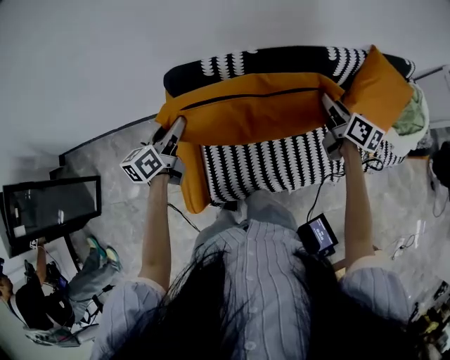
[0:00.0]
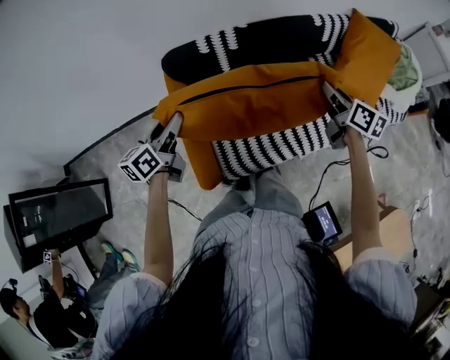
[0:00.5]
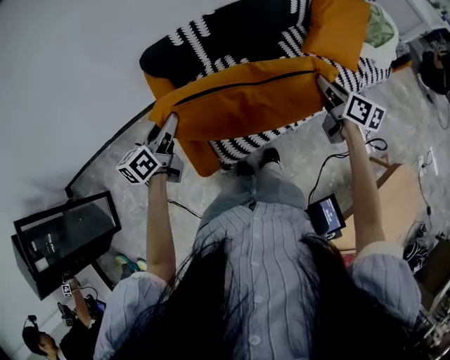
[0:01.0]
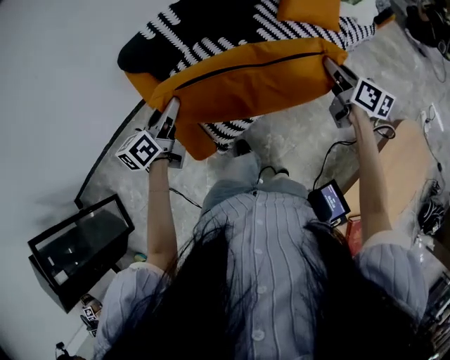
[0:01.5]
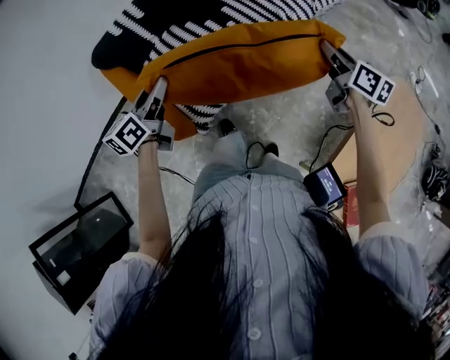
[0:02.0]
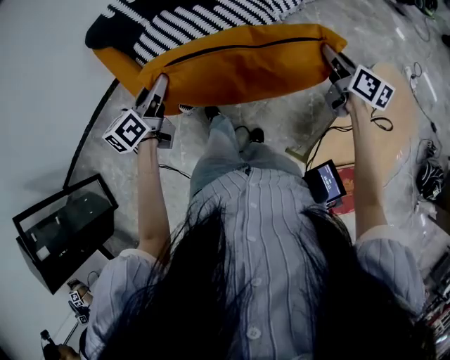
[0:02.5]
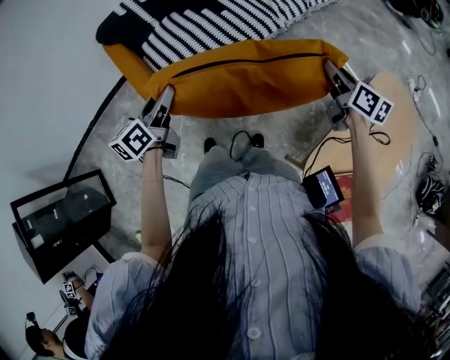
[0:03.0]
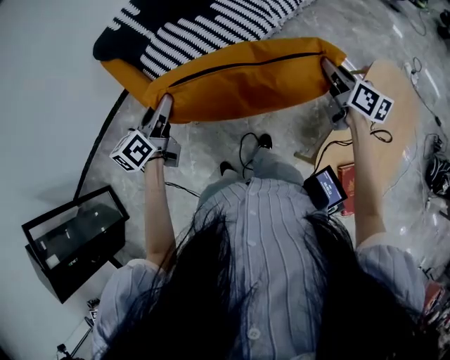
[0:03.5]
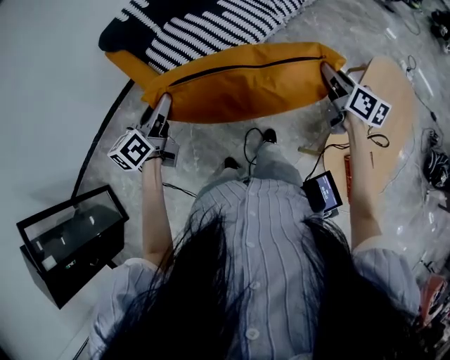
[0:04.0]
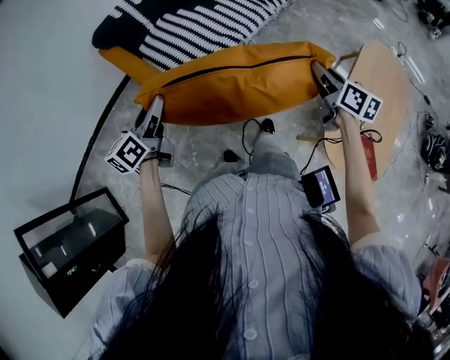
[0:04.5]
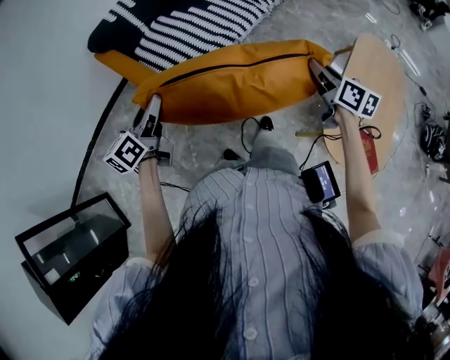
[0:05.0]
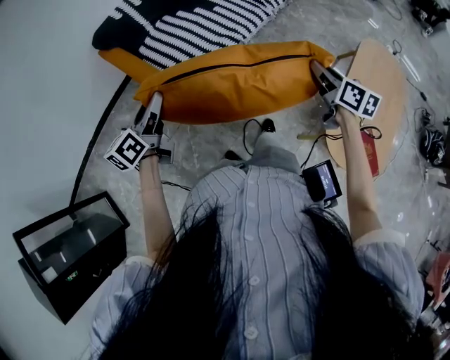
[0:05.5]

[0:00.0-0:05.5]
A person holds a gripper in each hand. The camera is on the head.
0:00.0 to 0:02.0: The right gripper moves some 50 cm, and turns by roughly 30 degrees, while the left gripper moves roughly 30 cm, and rotates some 30 degrees.
0:02.0 to 0:03.5: Both grippers move backward, roughly 15 cm.
0:03.5 to 0:05.5: The left gripper shifts approximately 15 cm to the left and backward, while the right gripper travels backward and to the left by approximately 20 cm.

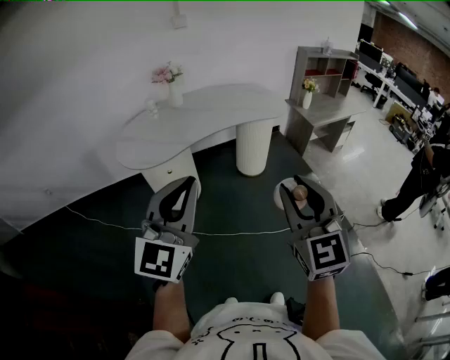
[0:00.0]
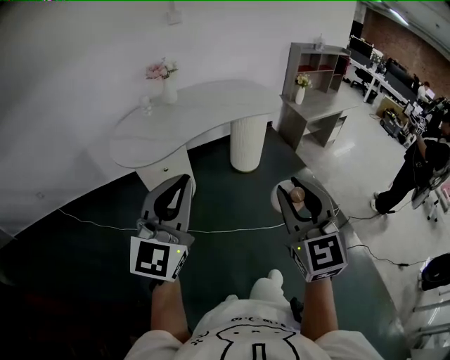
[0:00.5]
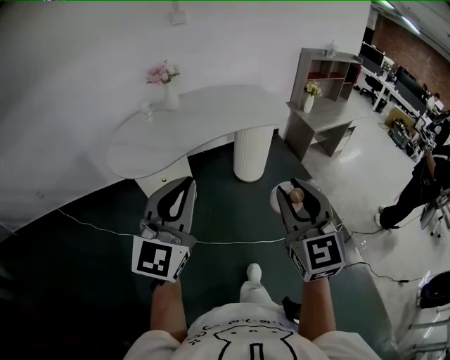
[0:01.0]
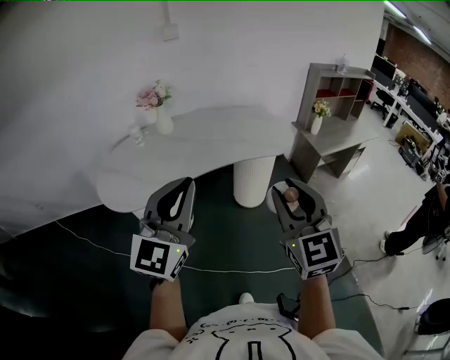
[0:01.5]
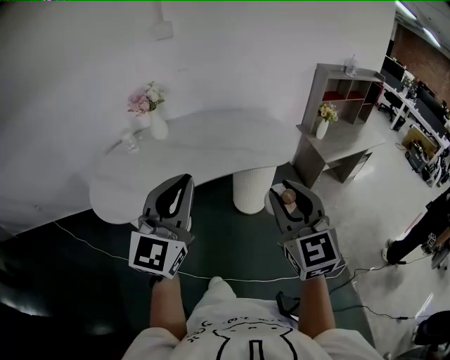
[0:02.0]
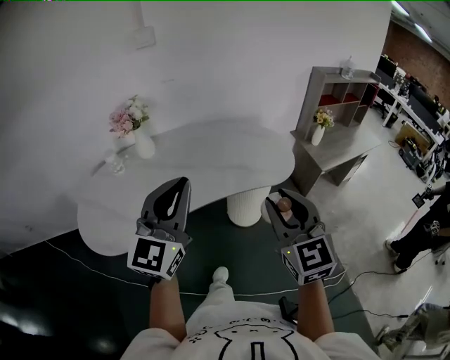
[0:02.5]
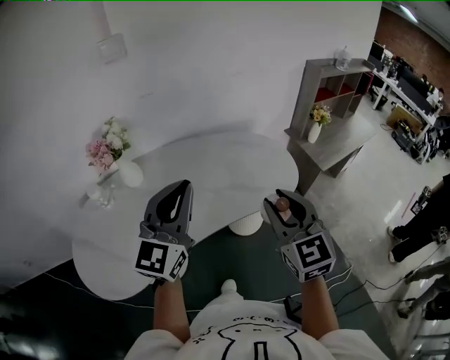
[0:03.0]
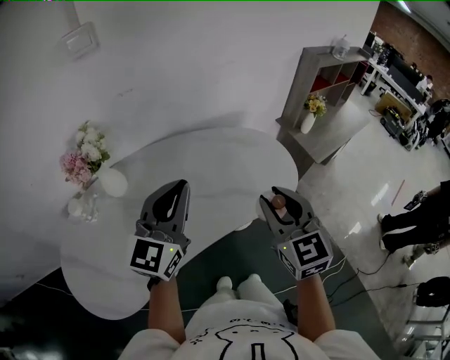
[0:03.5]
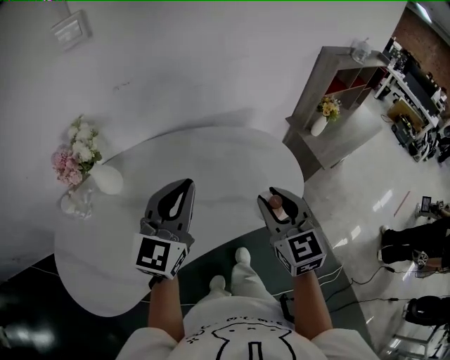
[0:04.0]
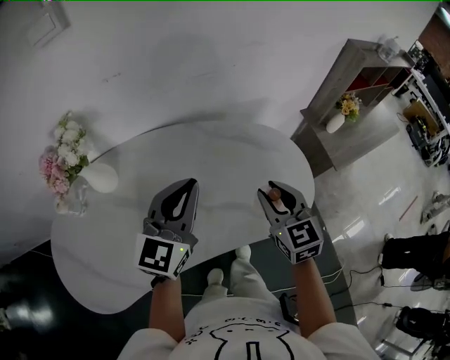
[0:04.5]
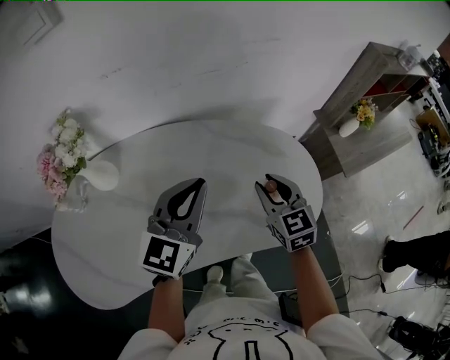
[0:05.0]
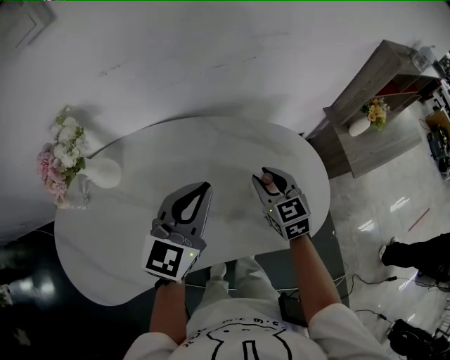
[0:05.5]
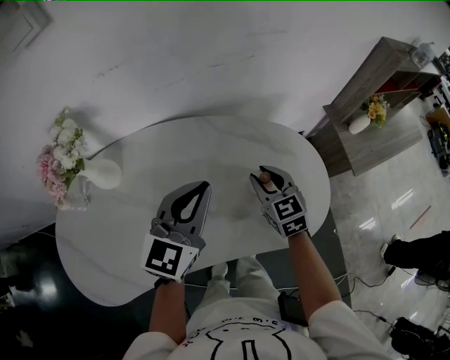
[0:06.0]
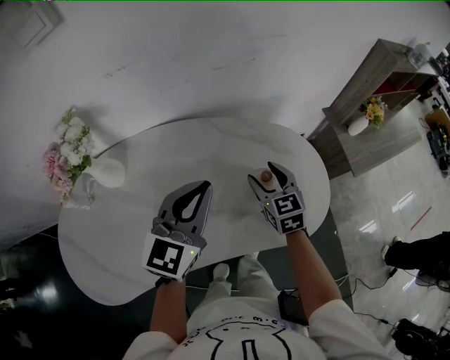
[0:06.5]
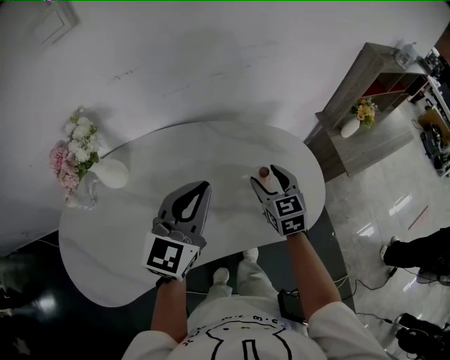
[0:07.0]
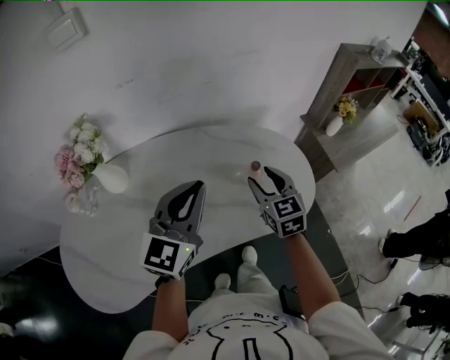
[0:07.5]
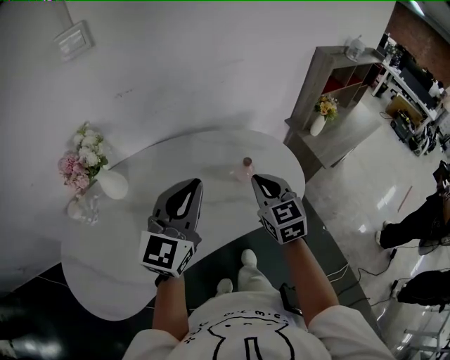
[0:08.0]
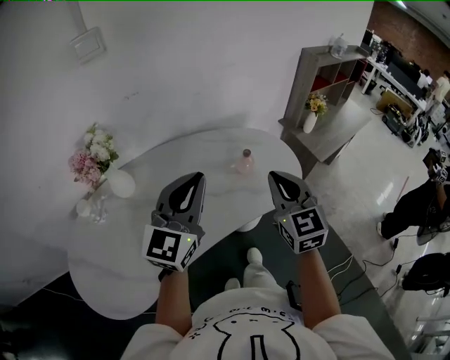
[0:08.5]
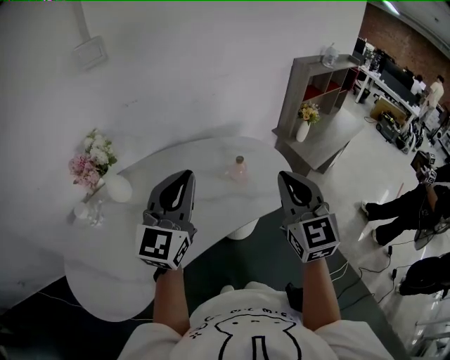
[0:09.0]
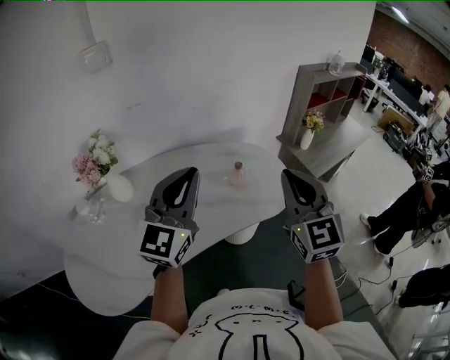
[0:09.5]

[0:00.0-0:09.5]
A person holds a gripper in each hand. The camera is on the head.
0:00.0 to 0:02.0: The two grippers travel together, forward, about 40 cm.
0:02.0 to 0:04.0: Both grippers are carried forward, some 50 cm.
0:04.0 to 0:05.5: The left gripper goes about 15 cm forward and downward. Meanwhile the right gripper goes roughly 25 cm forward and downward.
0:05.5 to 0:07.5: Both grippers move backward and upward, approximately 10 cm.
0:07.5 to 0:09.5: The left gripper shifts roughly 15 cm backward and upward; the right gripper goes approximately 30 cm upward and backward, turns by approximately 30 degrees, and closes up.

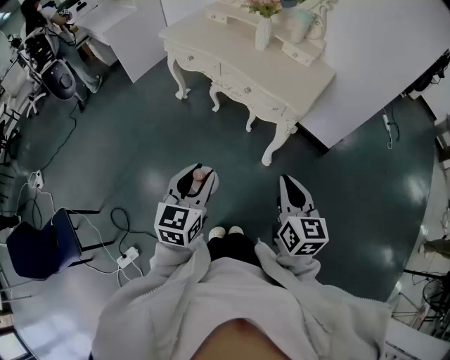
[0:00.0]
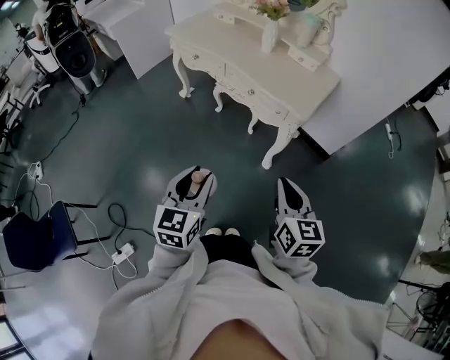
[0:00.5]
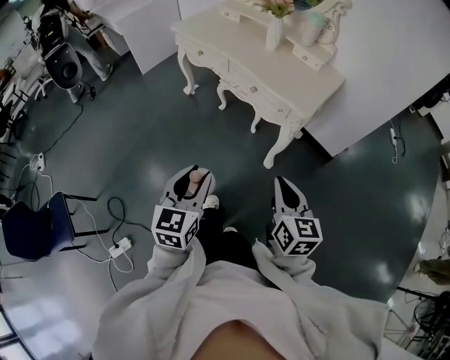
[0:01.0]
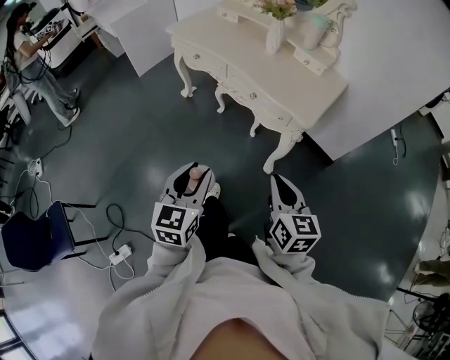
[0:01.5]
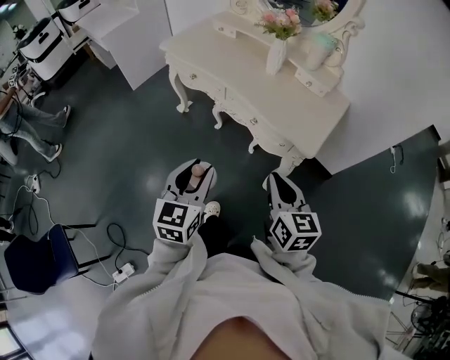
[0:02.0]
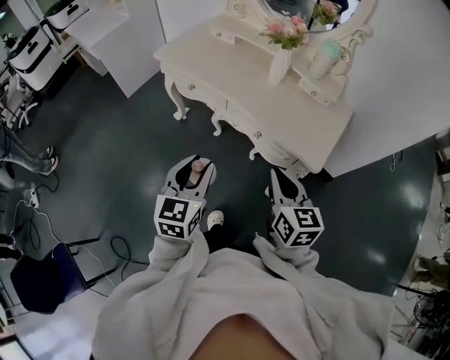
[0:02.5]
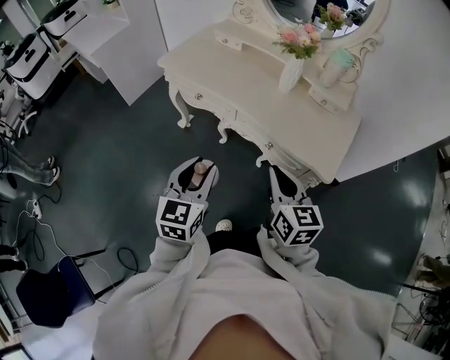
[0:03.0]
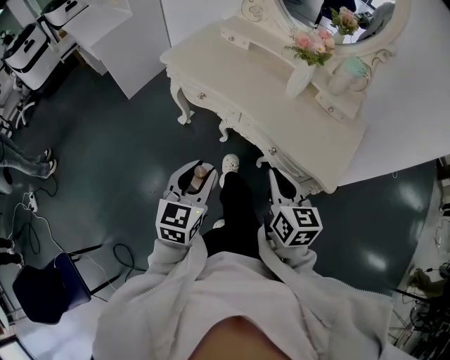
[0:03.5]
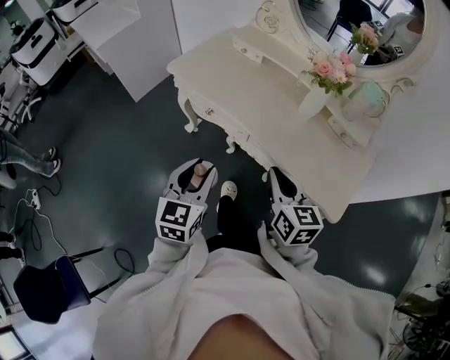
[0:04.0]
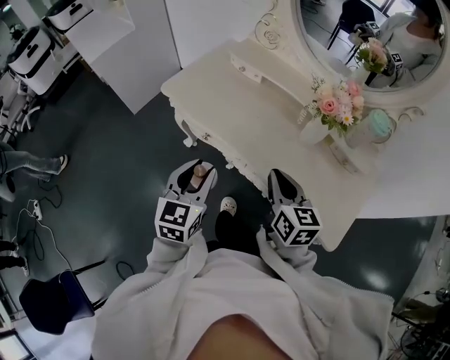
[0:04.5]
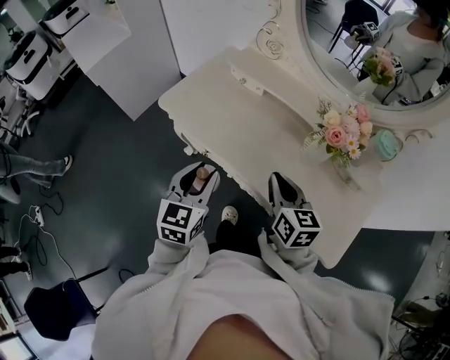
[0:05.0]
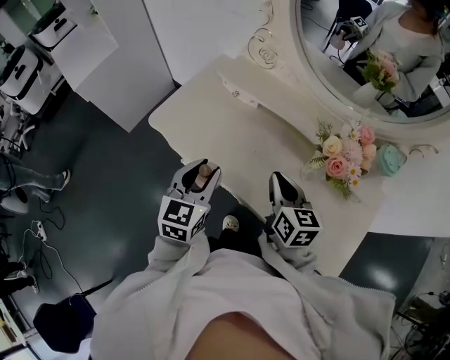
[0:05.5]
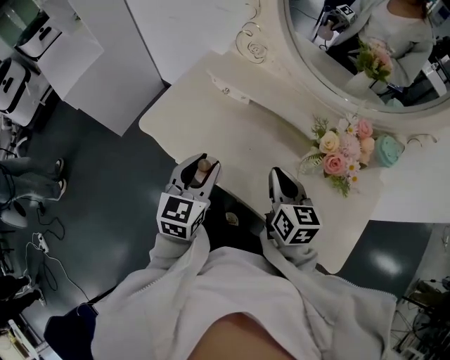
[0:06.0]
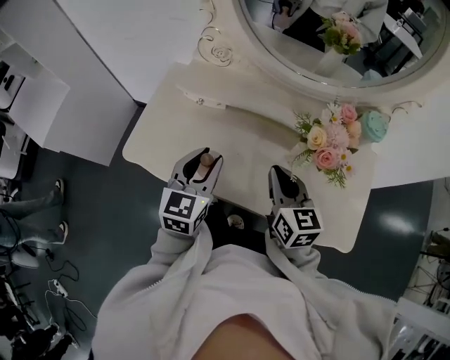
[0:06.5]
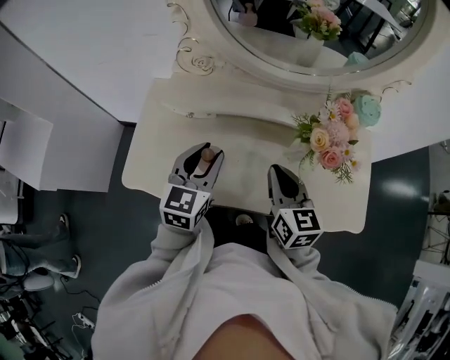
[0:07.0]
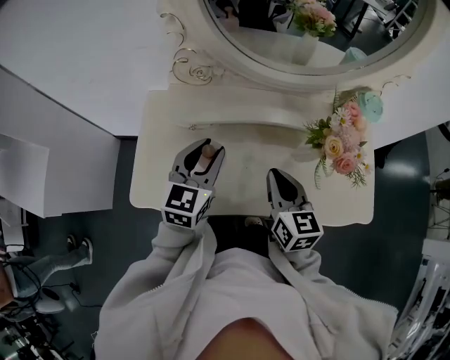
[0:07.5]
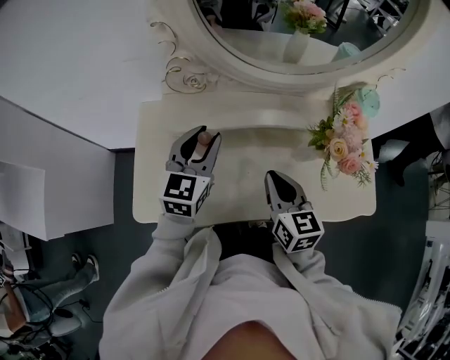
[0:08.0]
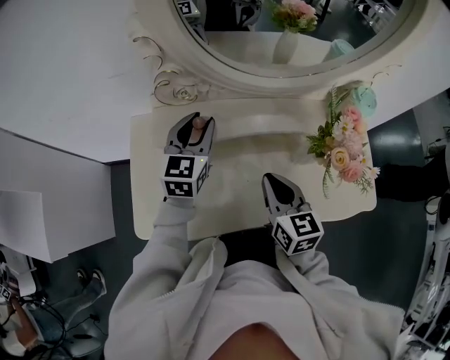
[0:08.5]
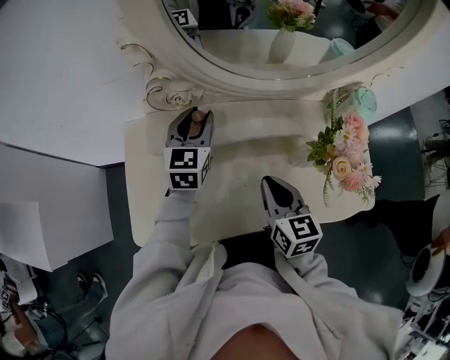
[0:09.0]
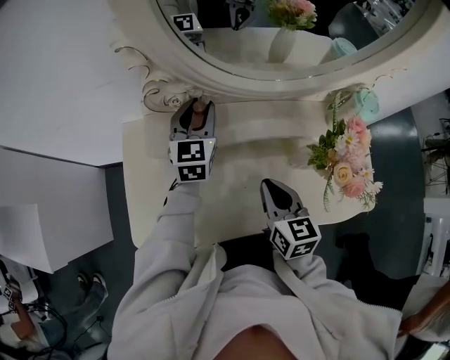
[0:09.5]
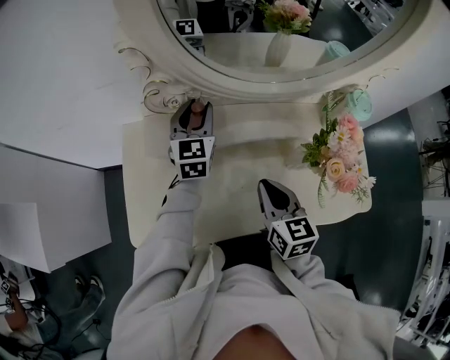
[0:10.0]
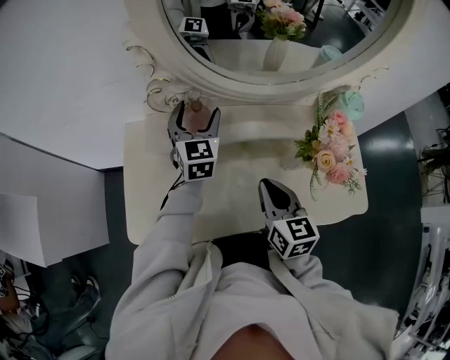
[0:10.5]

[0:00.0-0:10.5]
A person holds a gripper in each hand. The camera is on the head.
0:00.0 to 0:02.0: Both grippers travel together forward, approximately 20 cm.
0:02.0 to 0:04.0: Both grippers move forward and to the left, some 30 cm.
0:04.0 to 0:06.5: The grippers both shift forward by about 30 cm. The left gripper rotates about 20 degrees.
0:06.5 to 0:08.5: The left gripper is displaced forward by some 20 cm, while the right gripper heads to the left, covering roughly 5 cm, and rotates approximately 20 degrees.
0:08.5 to 0:10.5: The left gripper travels forward by roughly 5 cm, and opens.

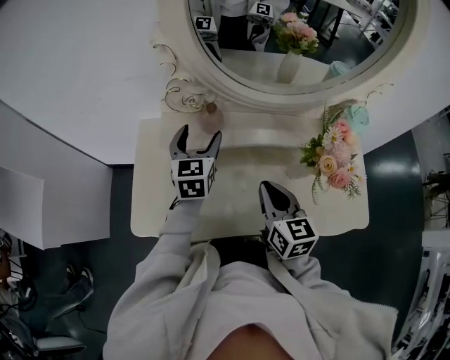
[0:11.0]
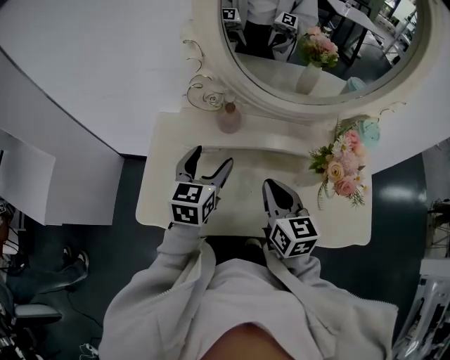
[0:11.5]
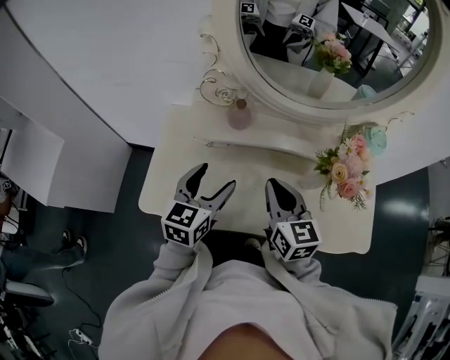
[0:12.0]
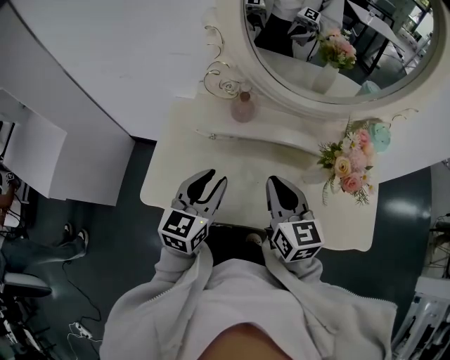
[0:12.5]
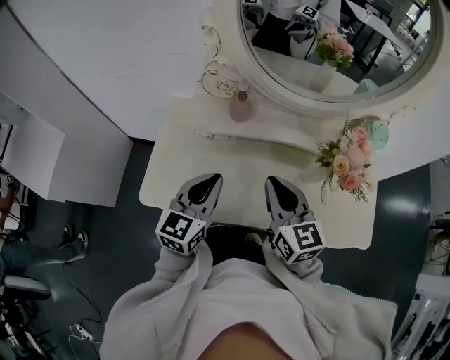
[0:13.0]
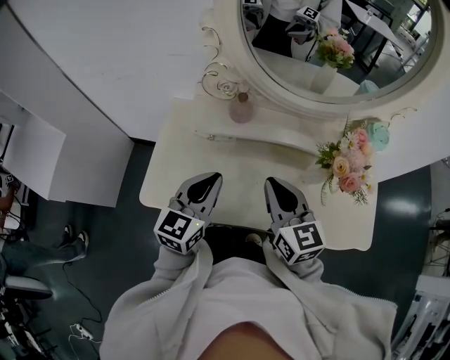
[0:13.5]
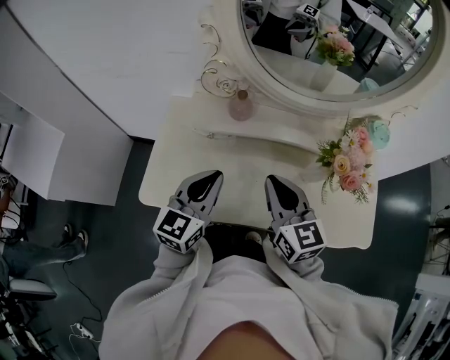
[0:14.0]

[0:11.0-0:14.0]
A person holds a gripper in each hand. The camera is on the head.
0:11.0 to 0:12.5: The left gripper goes some 20 cm backward, and closes. The right gripper shifts by approximately 5 cm.
0:12.5 to 0:14.0: The grippers move only a little.
